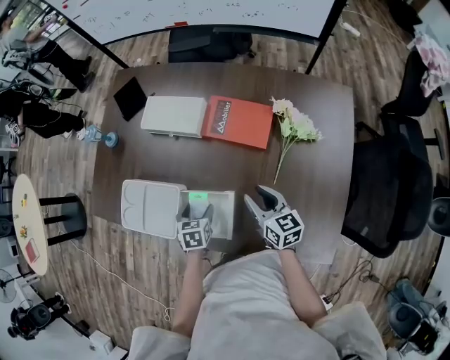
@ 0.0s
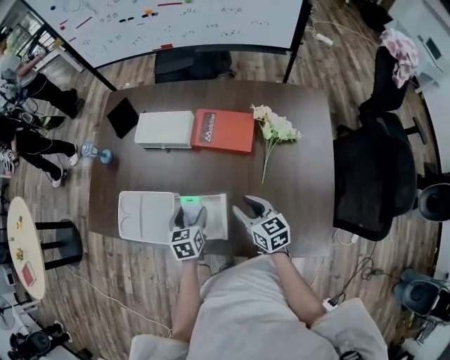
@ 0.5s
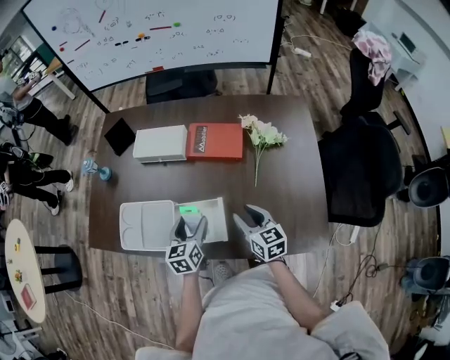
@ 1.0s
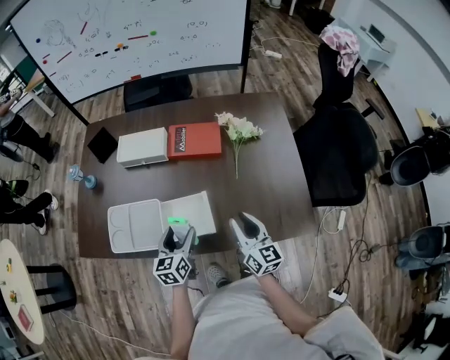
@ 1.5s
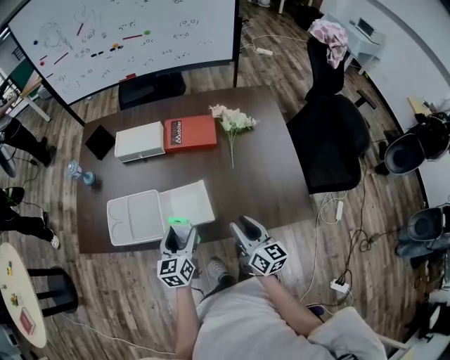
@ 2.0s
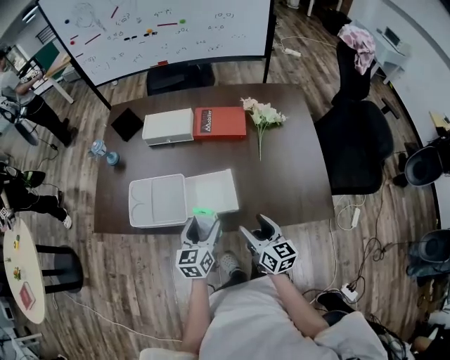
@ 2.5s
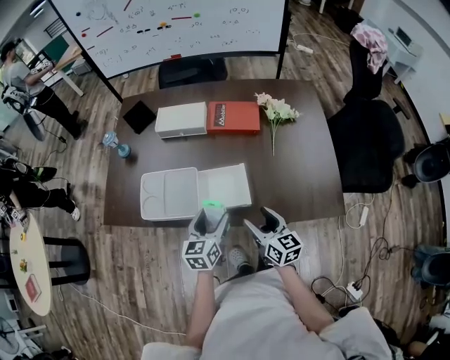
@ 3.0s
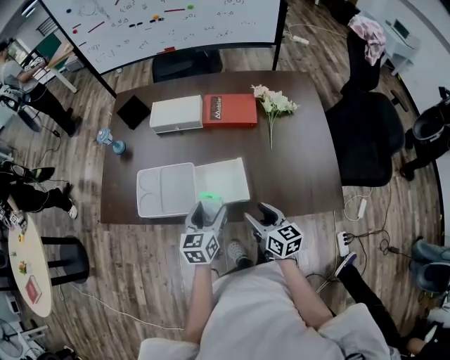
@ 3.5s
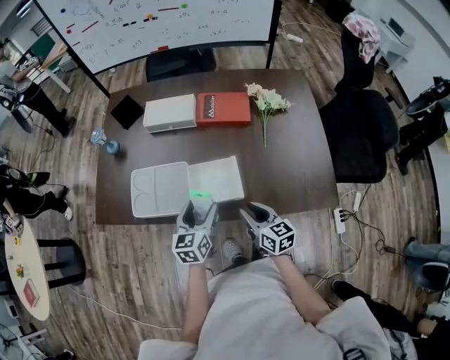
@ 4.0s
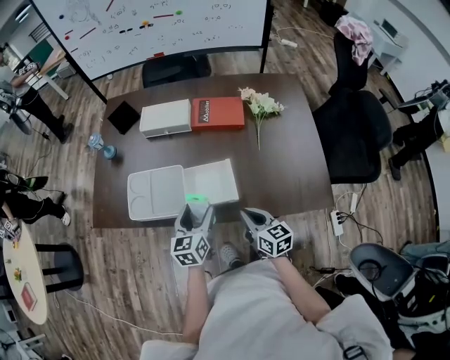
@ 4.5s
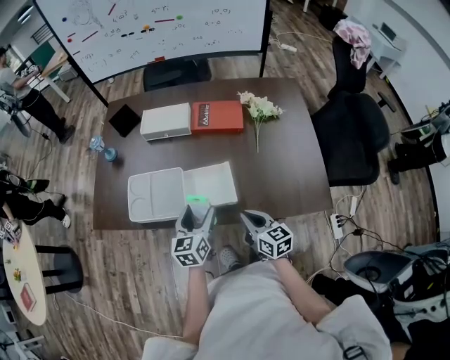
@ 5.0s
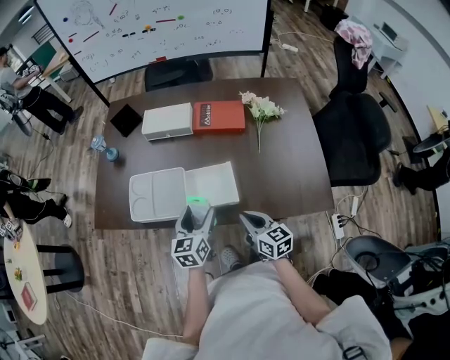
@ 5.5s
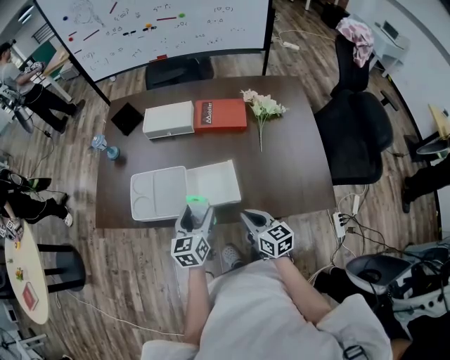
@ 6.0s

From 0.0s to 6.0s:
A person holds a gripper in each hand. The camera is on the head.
From 0.0s to 2.0s: The left gripper shifts approximately 20 cm backward and upward, and points its fingers roughly 40 degrees further upward; the right gripper heads backward, covering approximately 25 cm, and rotates roughly 30 degrees.
From 2.0s to 4.0s: The right gripper is displaced to the left and downward by some 10 cm, swivels approximately 20 degrees, and opens and closes again.
From 4.0s to 6.0s: The right gripper closes its fingers.

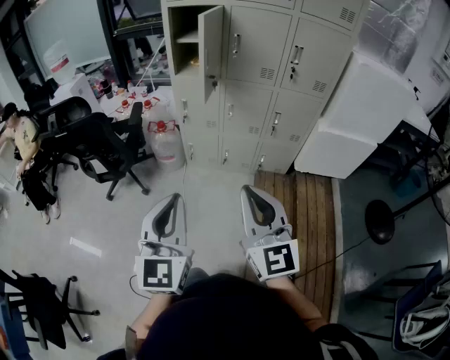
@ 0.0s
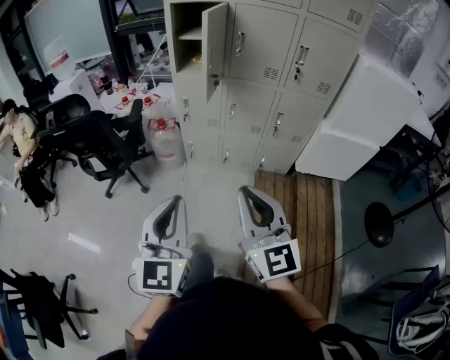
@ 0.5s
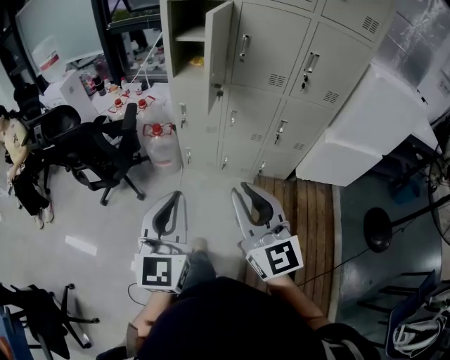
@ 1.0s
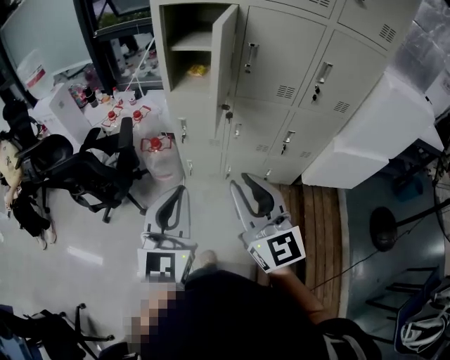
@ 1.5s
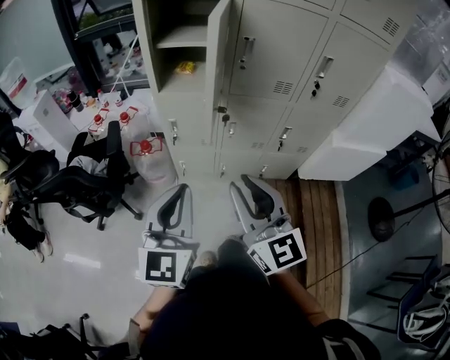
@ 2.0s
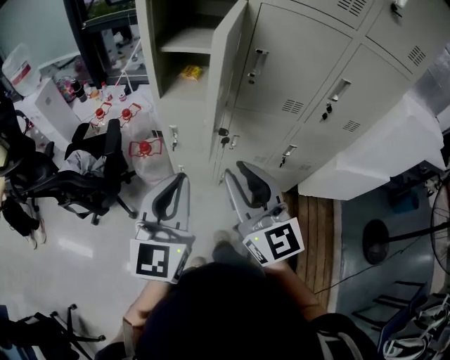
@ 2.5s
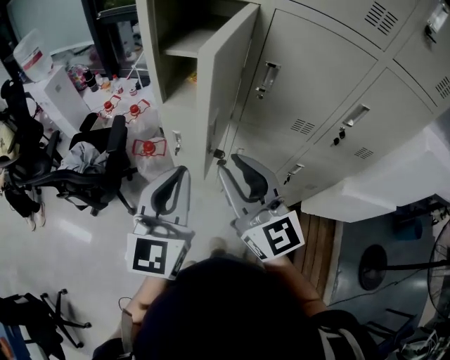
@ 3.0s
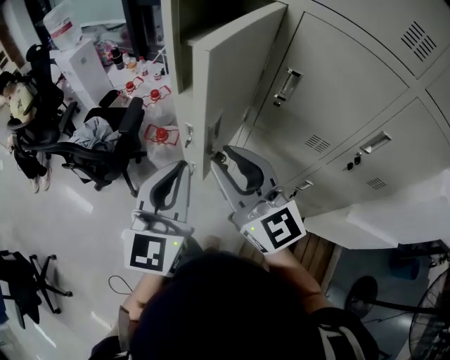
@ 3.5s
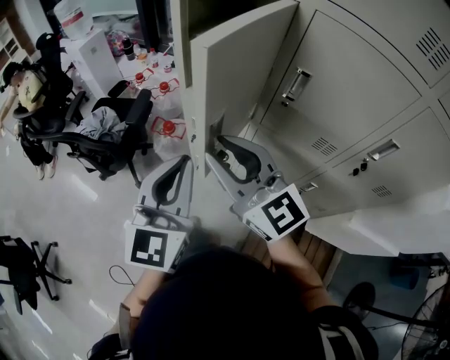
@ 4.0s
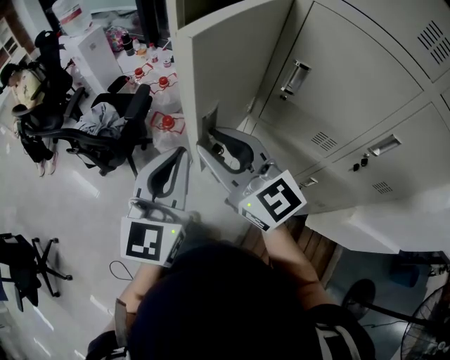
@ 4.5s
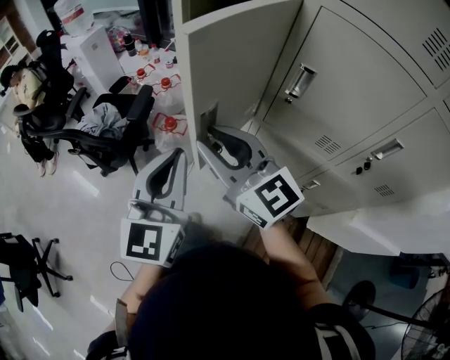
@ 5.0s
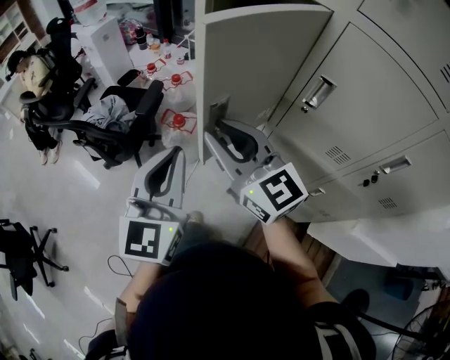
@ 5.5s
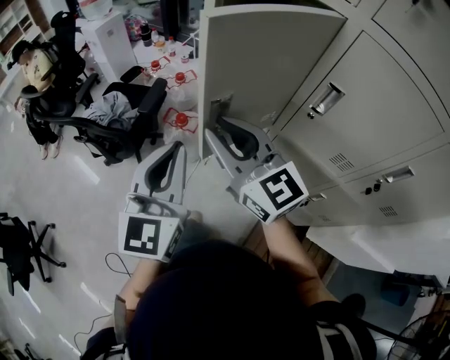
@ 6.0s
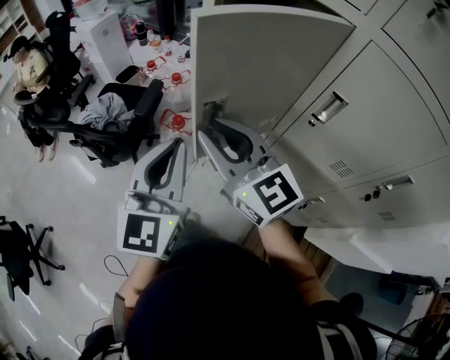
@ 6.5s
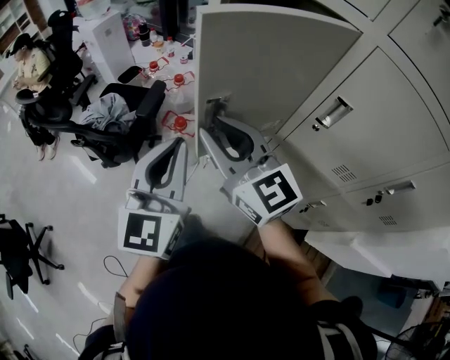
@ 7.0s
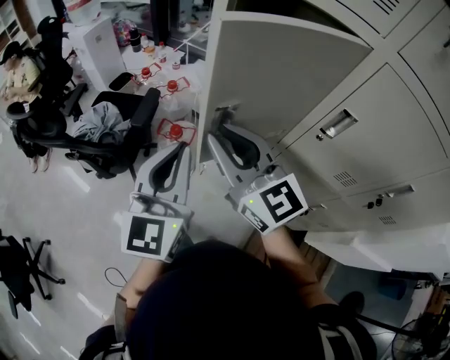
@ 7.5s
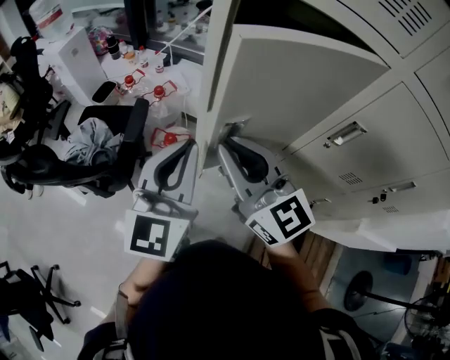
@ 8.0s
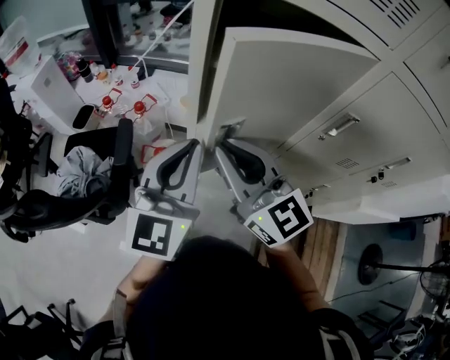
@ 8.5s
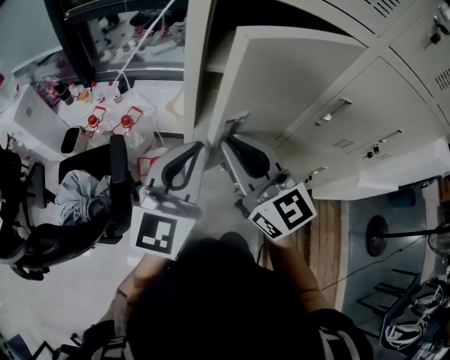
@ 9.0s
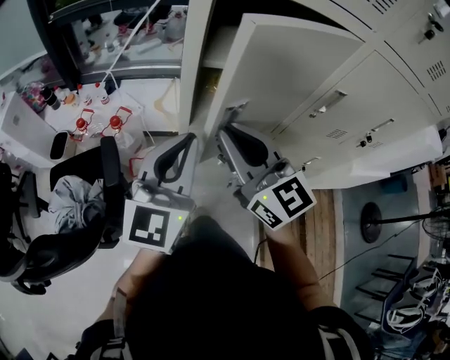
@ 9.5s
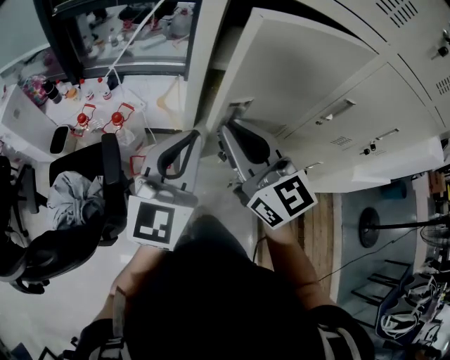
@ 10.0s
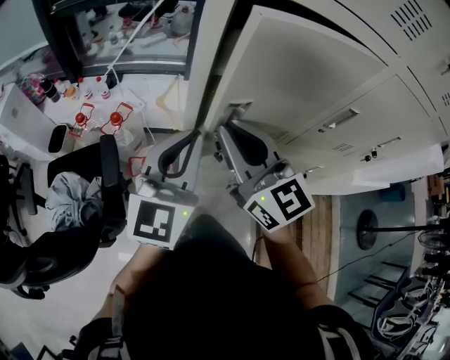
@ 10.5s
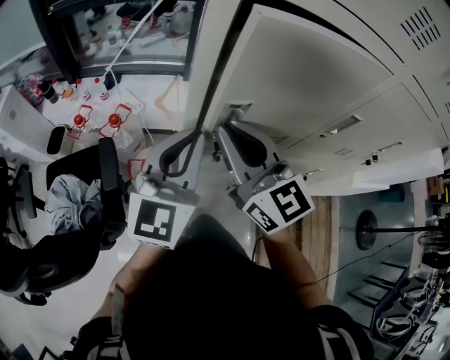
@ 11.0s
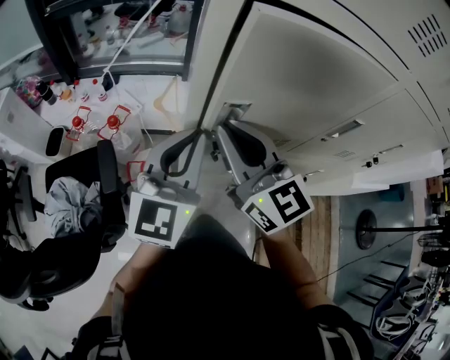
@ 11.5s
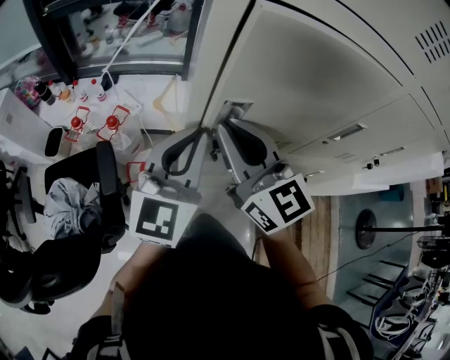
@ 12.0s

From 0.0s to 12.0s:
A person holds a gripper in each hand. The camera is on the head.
From 0.0s to 2.0s: Both grippers travel together forward, approximately 30 cm.
From 2.0s to 4.0s: The left gripper changes place by about 20 cm, and changes its angle by some 20 degrees. The right gripper shifts by about 20 cm, and swivels some 40 degrees.
From 4.0s to 6.0s: The right gripper heads forward, covering some 5 cm. Meanwhile the left gripper heads to the left and forward, covering some 10 cm.
From 6.0s to 8.0s: Both grippers move forward, approximately 10 cm.
From 8.0s to 10.0s: The left gripper shifts by approximately 10 cm, and turns by roughly 30 degrees. Meanwhile the right gripper ends up some 10 cm from where it was, and rotates approximately 20 degrees.
From 10.0s to 12.0s: Both grippers move forward, approximately 5 cm.

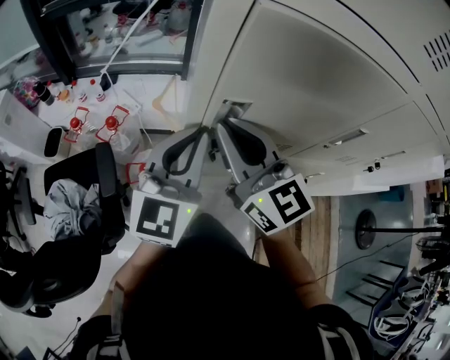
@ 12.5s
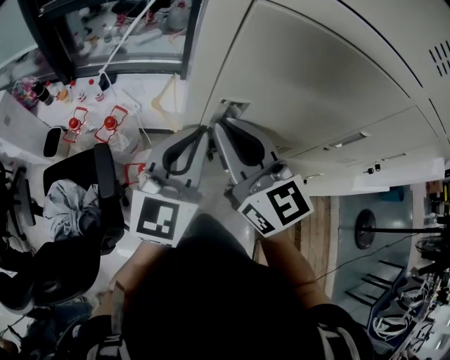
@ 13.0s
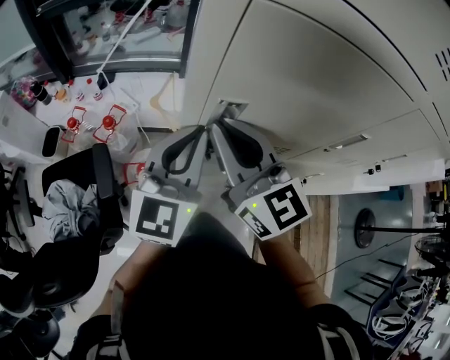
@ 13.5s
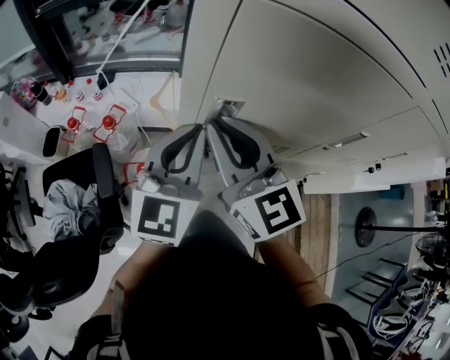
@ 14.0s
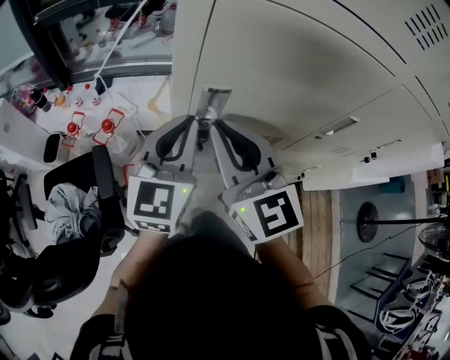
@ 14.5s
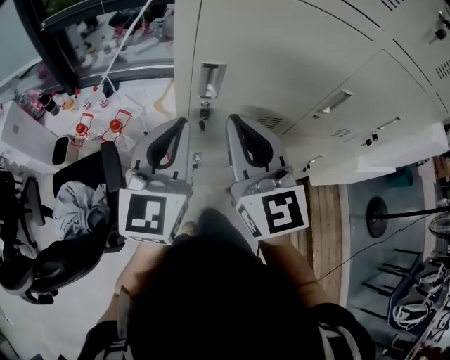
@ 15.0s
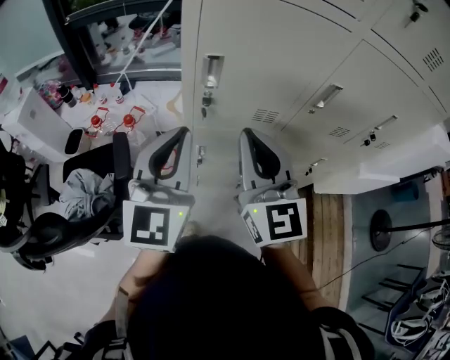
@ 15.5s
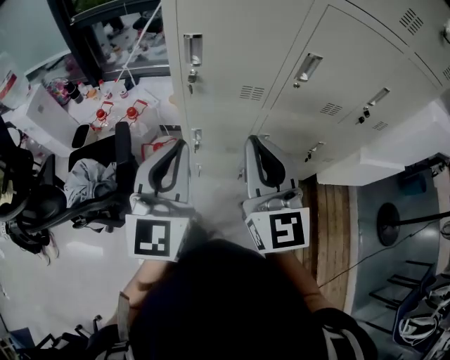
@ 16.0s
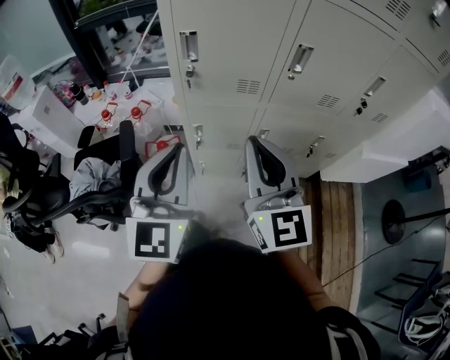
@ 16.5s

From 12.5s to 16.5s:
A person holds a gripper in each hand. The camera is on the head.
From 12.5s to 14.5s: The grippers stay close to where they were, moving slightly.
From 14.5s to 16.5s: The right gripper goes about 25 cm backward and to the right. Meanwhile the left gripper goes approximately 30 cm backward.

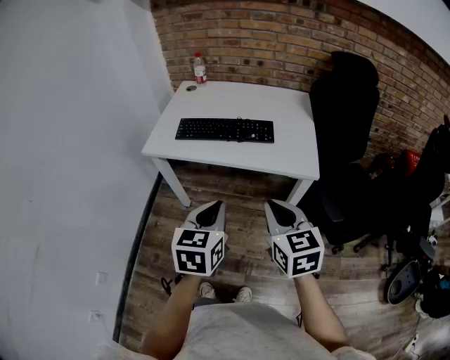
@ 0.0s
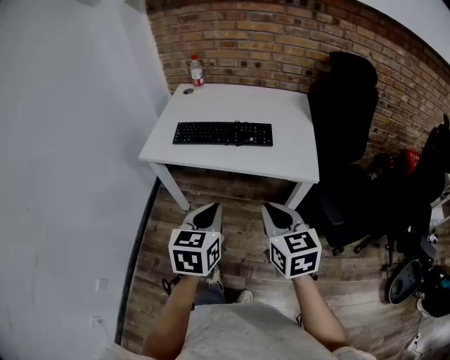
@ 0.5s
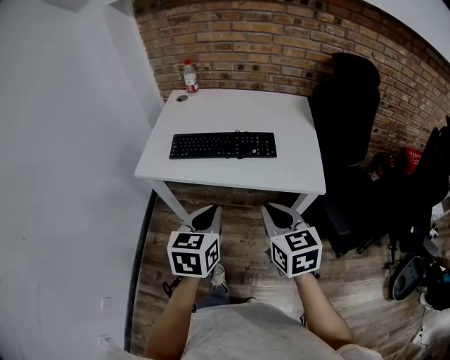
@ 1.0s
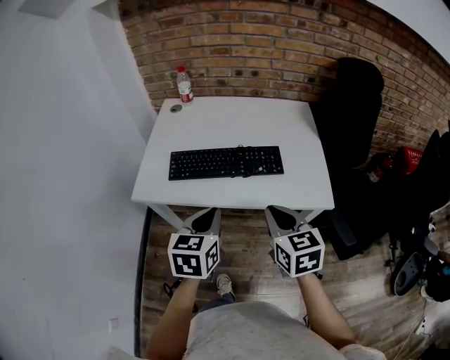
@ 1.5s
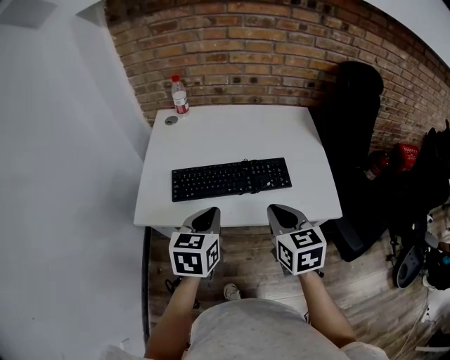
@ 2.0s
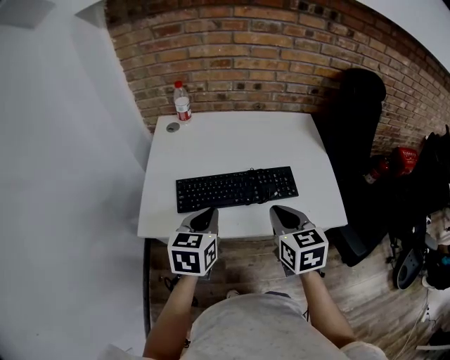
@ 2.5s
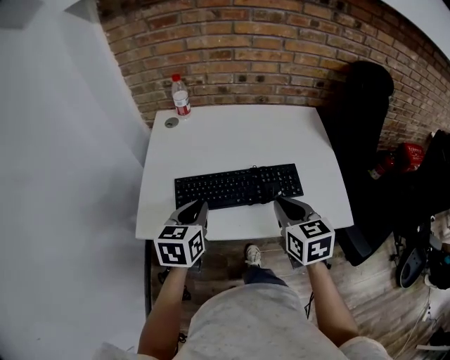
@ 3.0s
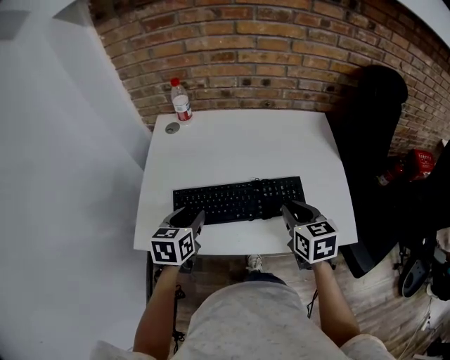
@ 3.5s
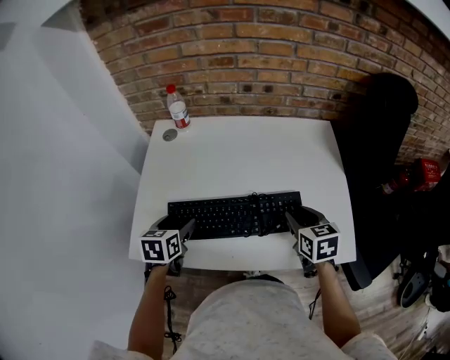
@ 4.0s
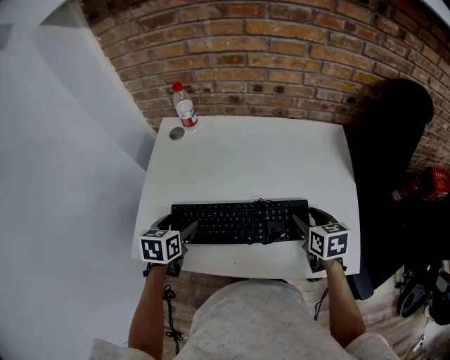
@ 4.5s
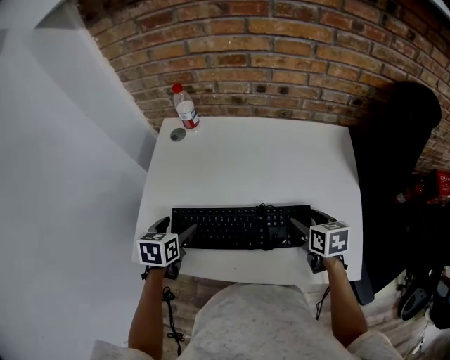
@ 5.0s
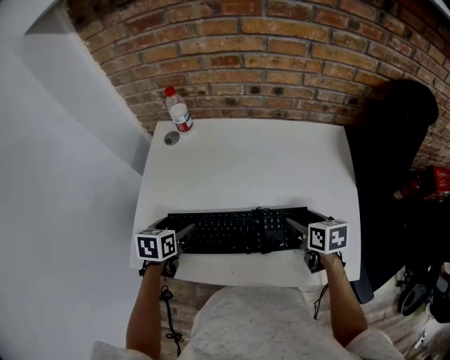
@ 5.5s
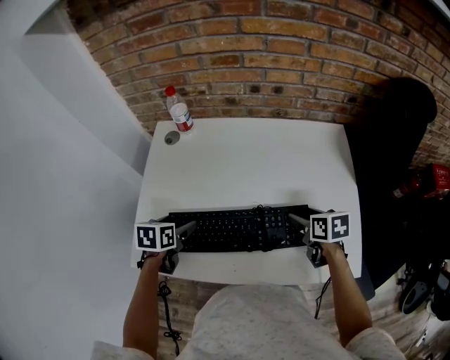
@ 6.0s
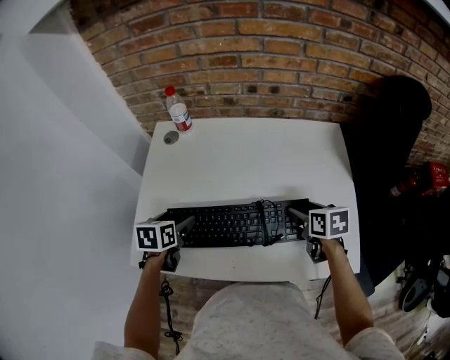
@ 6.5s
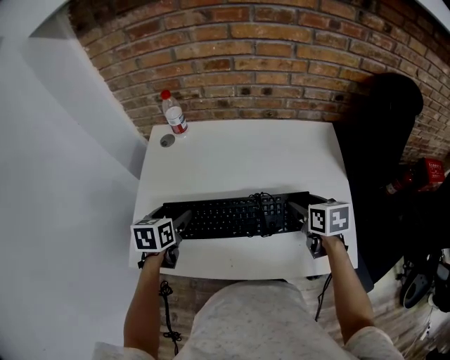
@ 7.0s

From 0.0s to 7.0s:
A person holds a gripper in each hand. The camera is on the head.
From 0.0s to 2.0s: The grippers both shift forward by about 30 cm.
From 2.0s to 3.5s: The right gripper shifts roughly 15 cm forward and downward. The left gripper travels forward, to the left and downward by roughly 20 cm, and opens its fingers.
From 3.5s to 5.0s: The right gripper shifts approximately 15 cm forward, downward and to the right, and opens up. The left gripper moves forward, roughly 5 cm, and opens its fingers.
From 5.0s to 7.0s: The grippers stay close to where they were, moving slightly.
